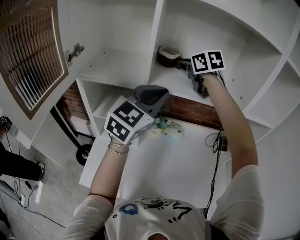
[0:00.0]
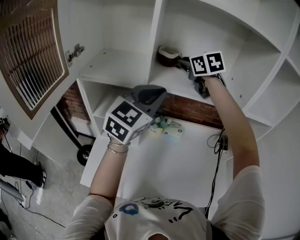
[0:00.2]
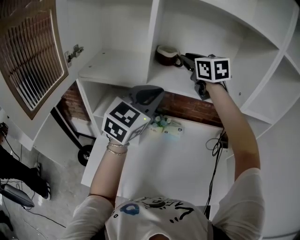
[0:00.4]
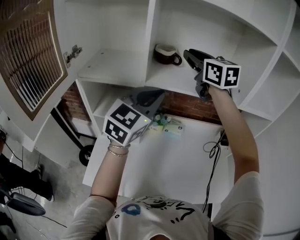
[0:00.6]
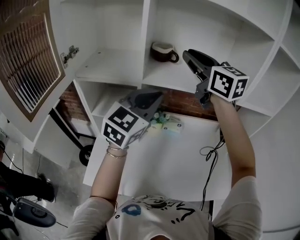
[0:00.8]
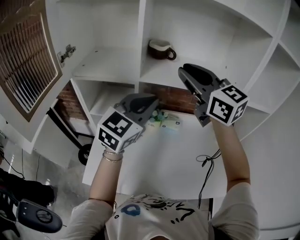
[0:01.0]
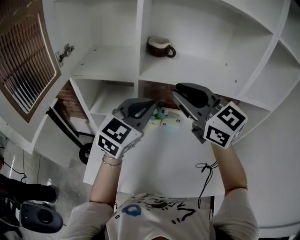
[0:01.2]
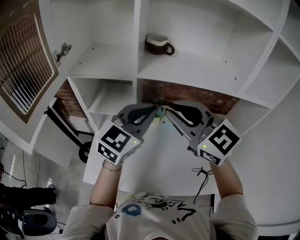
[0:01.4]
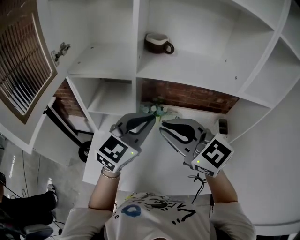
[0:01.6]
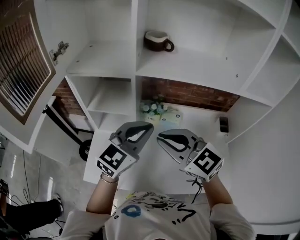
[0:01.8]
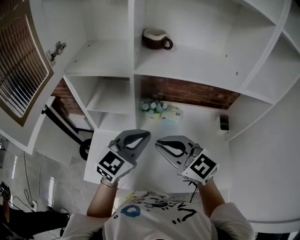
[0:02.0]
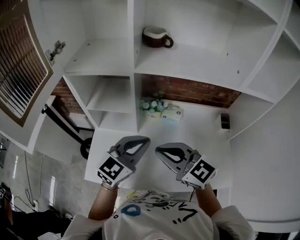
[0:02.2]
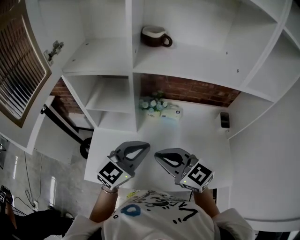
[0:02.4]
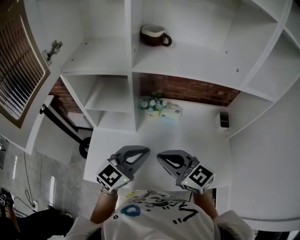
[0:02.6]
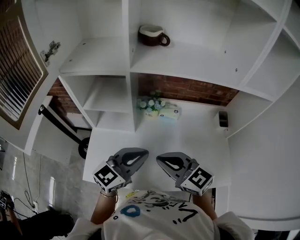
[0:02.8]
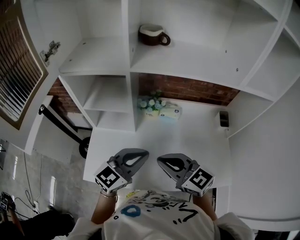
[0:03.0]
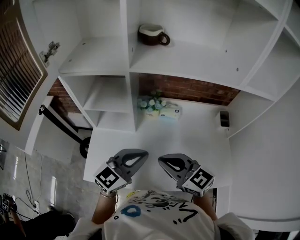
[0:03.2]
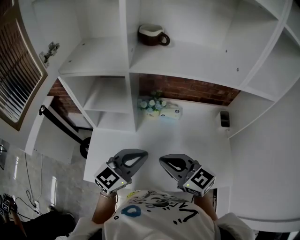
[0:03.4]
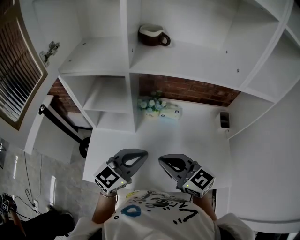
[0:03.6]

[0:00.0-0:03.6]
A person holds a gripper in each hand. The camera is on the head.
0:00.0 to 0:01.8: The left gripper is displaced downward and backward by some 15 cm. The right gripper travels backward and downward by roughly 35 cm, and turns by approximately 30 degrees.
0:01.8 to 0:03.6: The left gripper is displaced downward and backward by some 10 cm, while the right gripper goes about 10 cm downward.

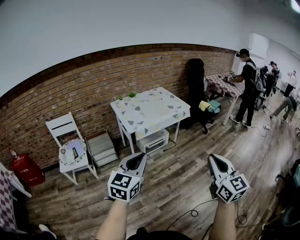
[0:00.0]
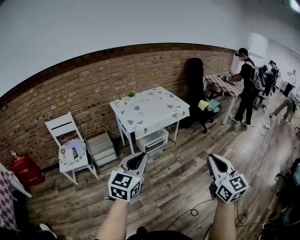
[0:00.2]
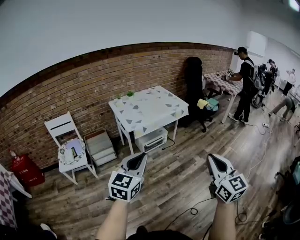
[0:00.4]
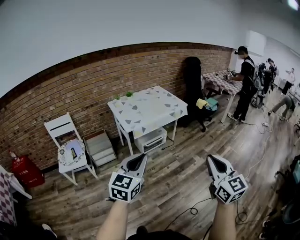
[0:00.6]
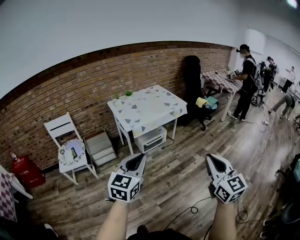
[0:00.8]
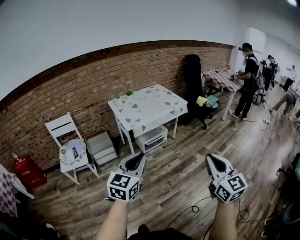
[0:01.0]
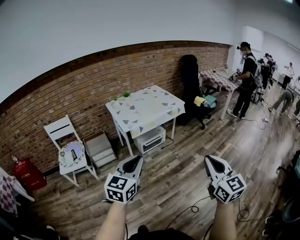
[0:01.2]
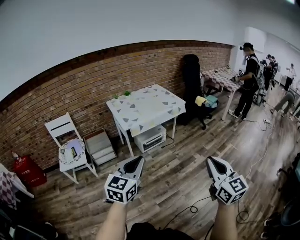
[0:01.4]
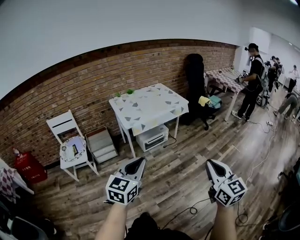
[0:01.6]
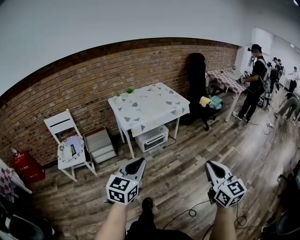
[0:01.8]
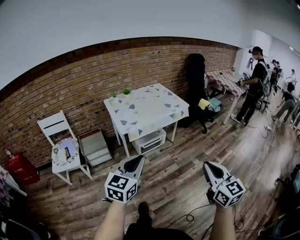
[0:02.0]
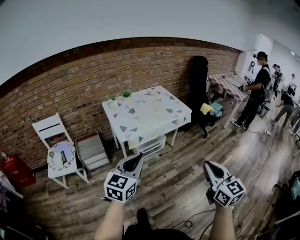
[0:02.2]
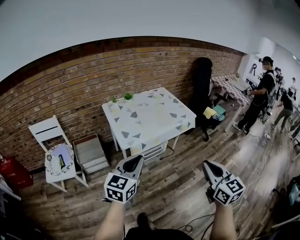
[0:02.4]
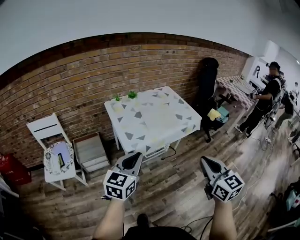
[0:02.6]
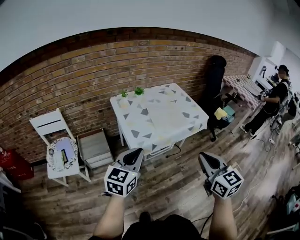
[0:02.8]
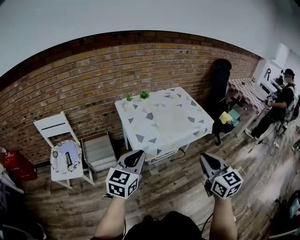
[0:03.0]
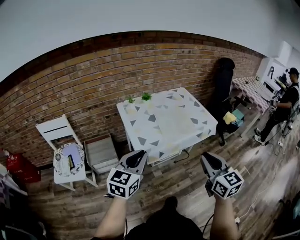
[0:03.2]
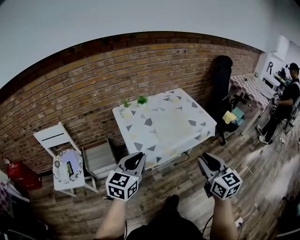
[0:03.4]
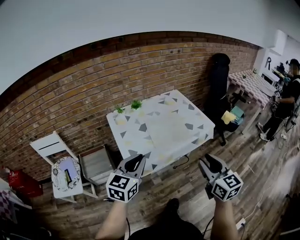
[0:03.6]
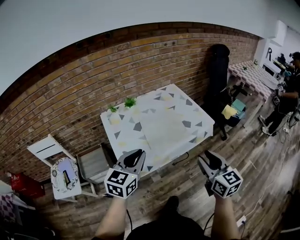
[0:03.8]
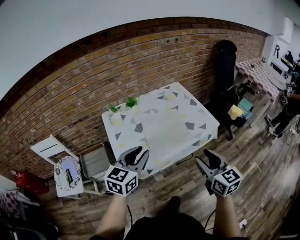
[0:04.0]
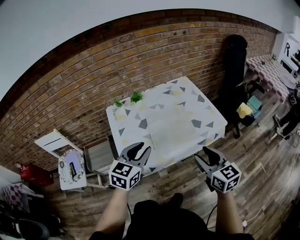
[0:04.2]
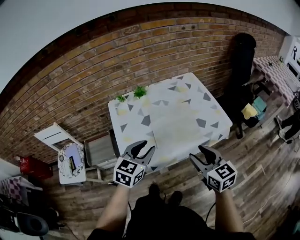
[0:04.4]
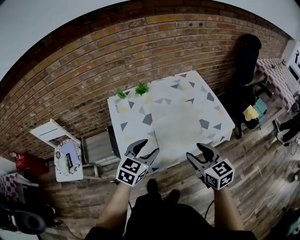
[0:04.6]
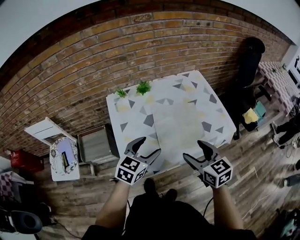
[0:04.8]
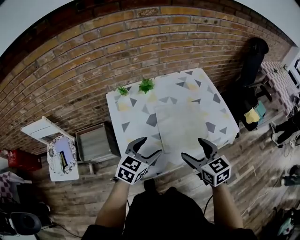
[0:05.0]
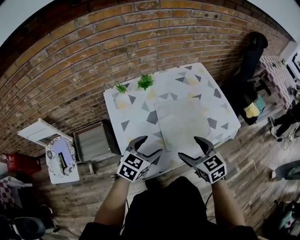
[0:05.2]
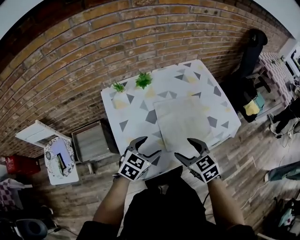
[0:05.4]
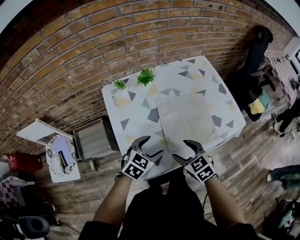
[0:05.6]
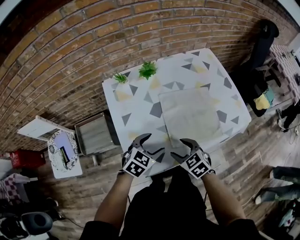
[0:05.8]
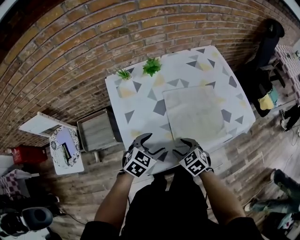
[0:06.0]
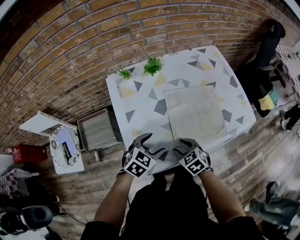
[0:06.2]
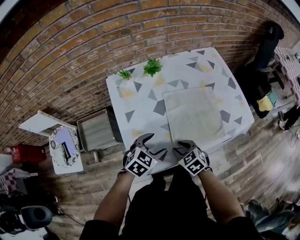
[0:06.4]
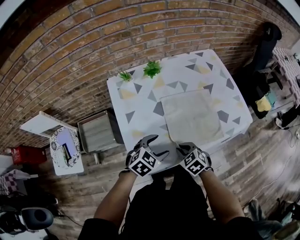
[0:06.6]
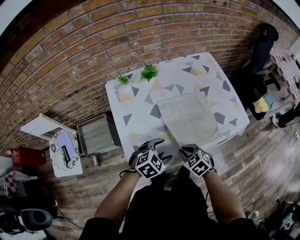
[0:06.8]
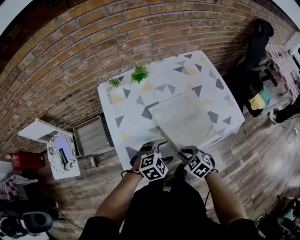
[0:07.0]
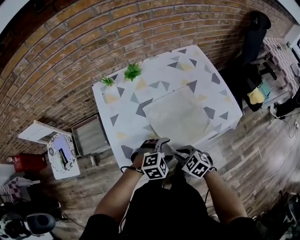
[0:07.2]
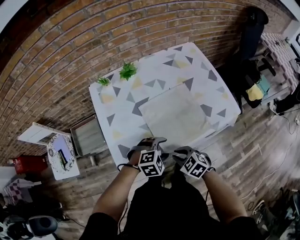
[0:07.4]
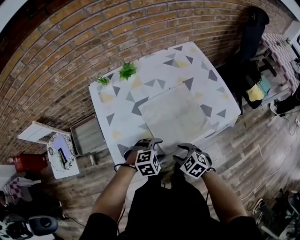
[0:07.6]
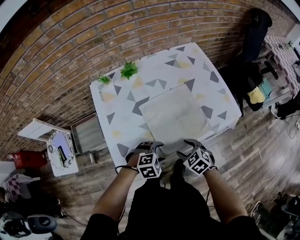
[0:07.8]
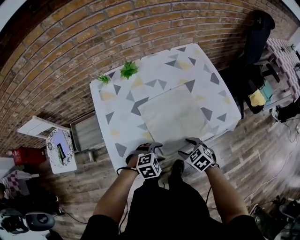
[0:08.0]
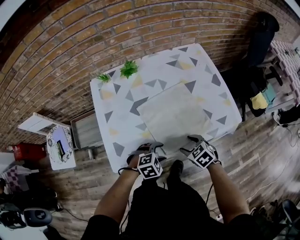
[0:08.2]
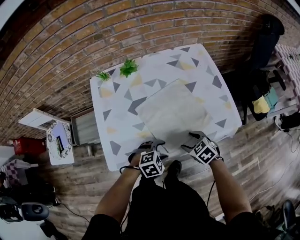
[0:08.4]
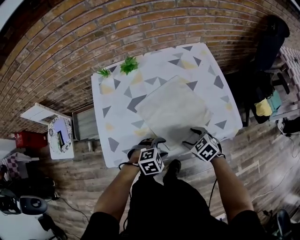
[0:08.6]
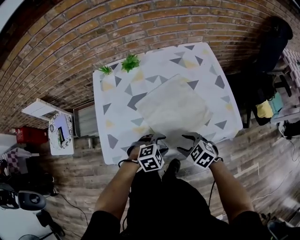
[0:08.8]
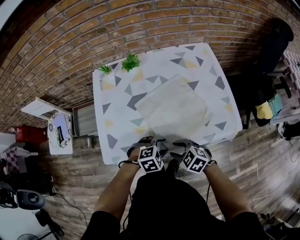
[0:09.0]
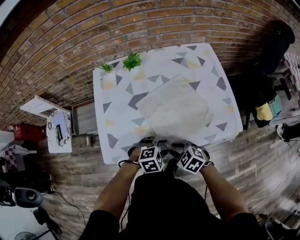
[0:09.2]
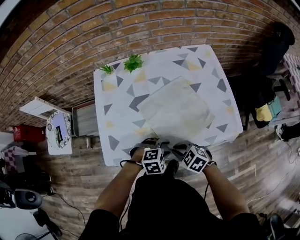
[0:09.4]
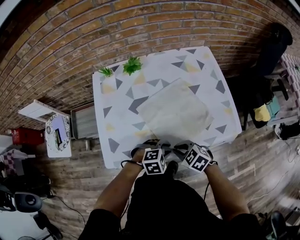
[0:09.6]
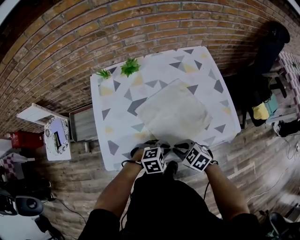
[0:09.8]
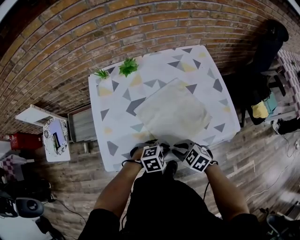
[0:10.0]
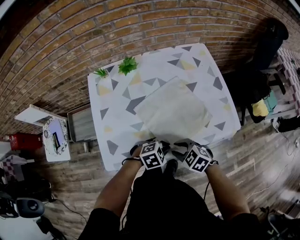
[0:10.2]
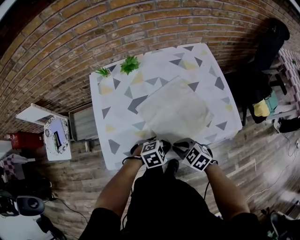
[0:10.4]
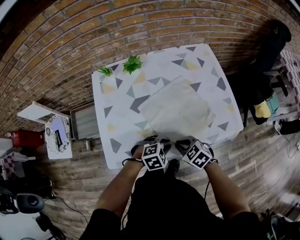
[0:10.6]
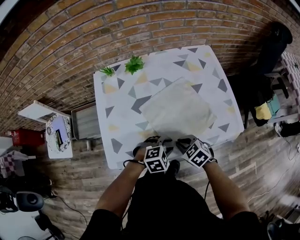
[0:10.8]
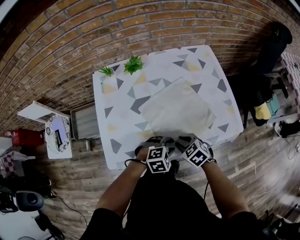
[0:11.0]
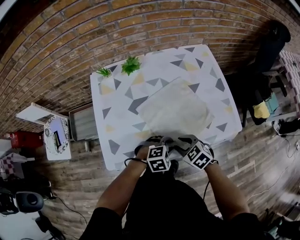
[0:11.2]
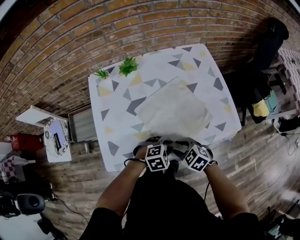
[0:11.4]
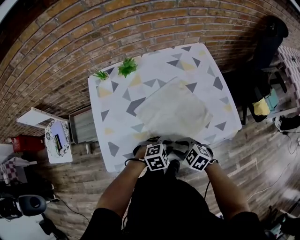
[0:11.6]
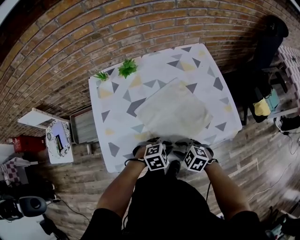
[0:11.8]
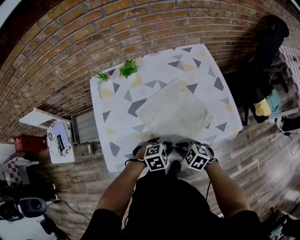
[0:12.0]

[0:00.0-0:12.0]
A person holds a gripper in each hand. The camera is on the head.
0:00.0 to 0:01.6: The left gripper ends up about 5 cm from where it was. Meanwhile the right gripper ends up about 5 cm from where it was.
0:01.6 to 0:03.0: Both grippers move forward and to the left, about 40 cm.
0:03.0 to 0:04.4: The left gripper goes about 30 cm forward and to the right, while the right gripper moves forward and downward, roughly 30 cm, and opens its fingers.
0:04.4 to 0:06.0: The right gripper heads downward and to the left, covering roughly 30 cm, and tips its fingers downward by approximately 30 degrees, while the left gripper is displaced downward by roughly 20 cm, turns by approximately 20 degrees, and opens.
0:06.0 to 0:07.6: The left gripper shifts by about 15 cm, and swivels about 40 degrees; the right gripper moves some 10 cm, and closes, then opens again.
0:07.6 to 0:09.0: The left gripper ends up roughly 10 cm from where it was; the right gripper rotates approximately 20 degrees.
0:09.0 to 0:10.4: The left gripper closes. Meanwhile the right gripper closes up.
0:10.4 to 0:12.0: There are only small adjustments of the grippers.

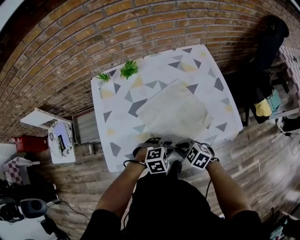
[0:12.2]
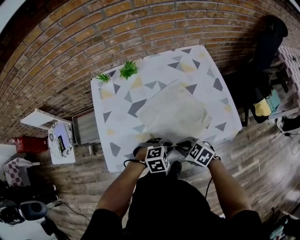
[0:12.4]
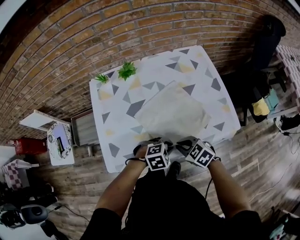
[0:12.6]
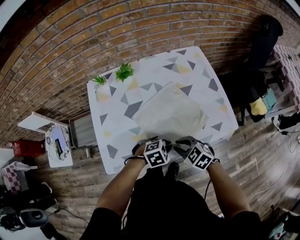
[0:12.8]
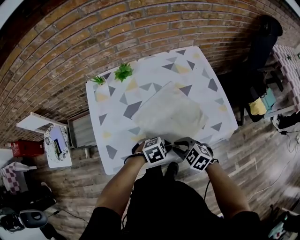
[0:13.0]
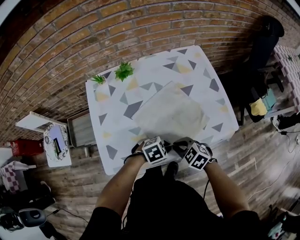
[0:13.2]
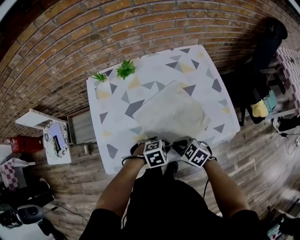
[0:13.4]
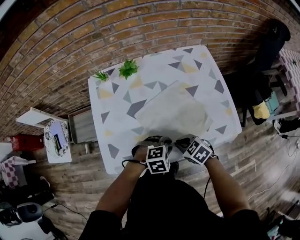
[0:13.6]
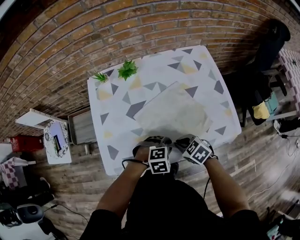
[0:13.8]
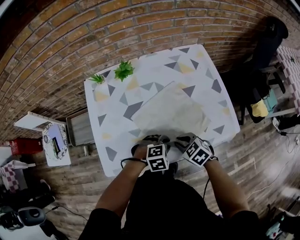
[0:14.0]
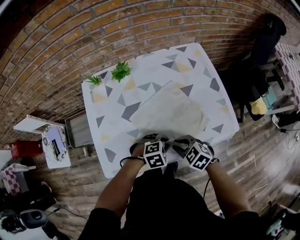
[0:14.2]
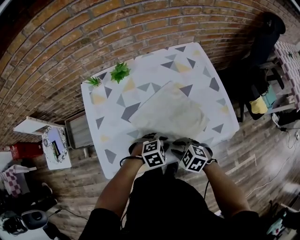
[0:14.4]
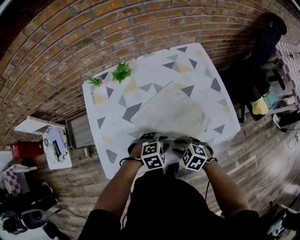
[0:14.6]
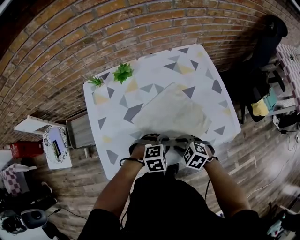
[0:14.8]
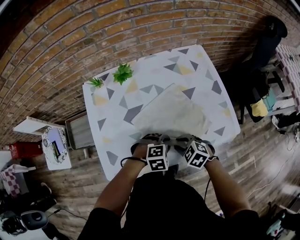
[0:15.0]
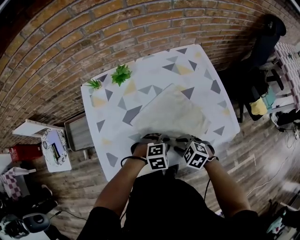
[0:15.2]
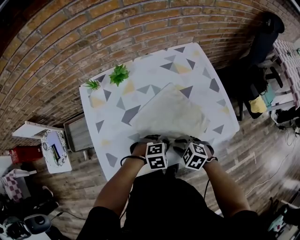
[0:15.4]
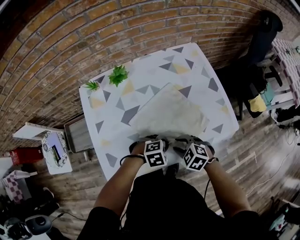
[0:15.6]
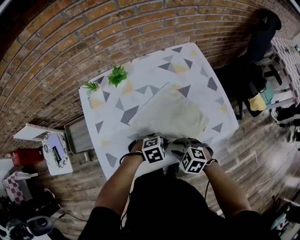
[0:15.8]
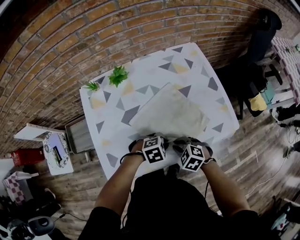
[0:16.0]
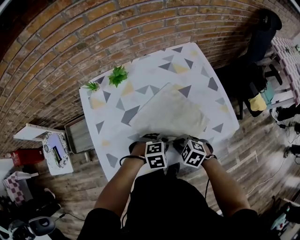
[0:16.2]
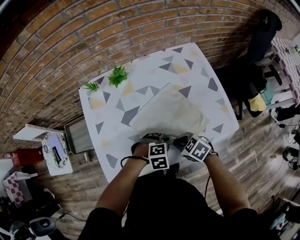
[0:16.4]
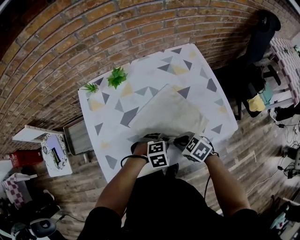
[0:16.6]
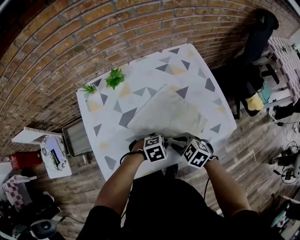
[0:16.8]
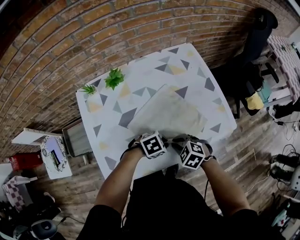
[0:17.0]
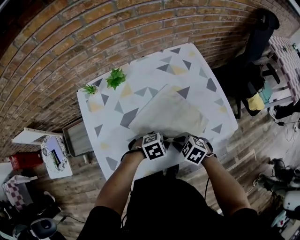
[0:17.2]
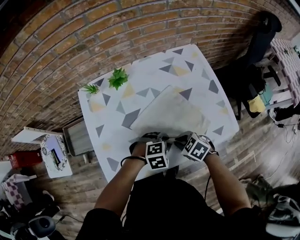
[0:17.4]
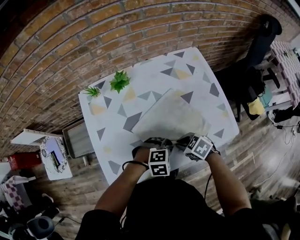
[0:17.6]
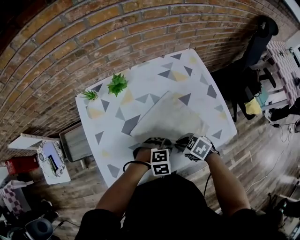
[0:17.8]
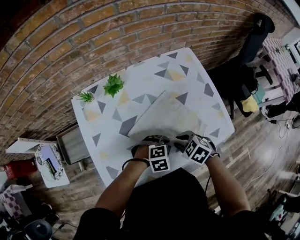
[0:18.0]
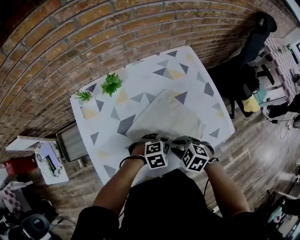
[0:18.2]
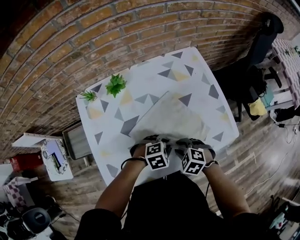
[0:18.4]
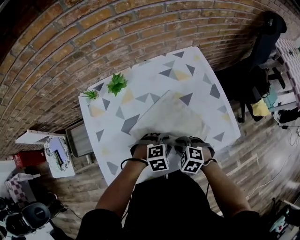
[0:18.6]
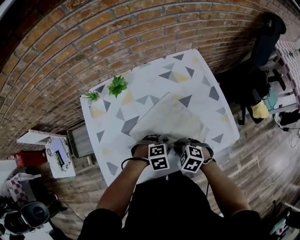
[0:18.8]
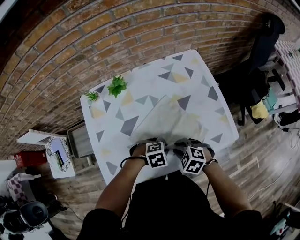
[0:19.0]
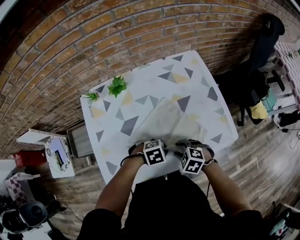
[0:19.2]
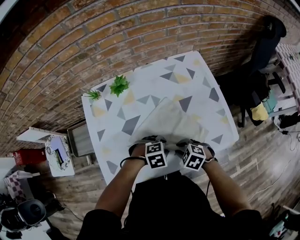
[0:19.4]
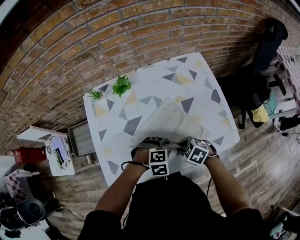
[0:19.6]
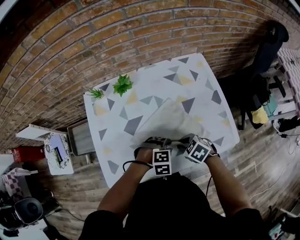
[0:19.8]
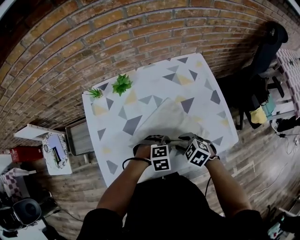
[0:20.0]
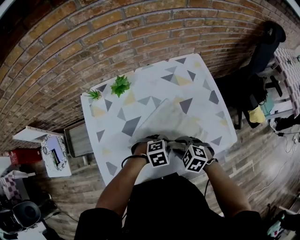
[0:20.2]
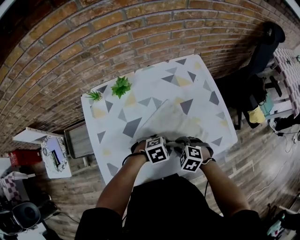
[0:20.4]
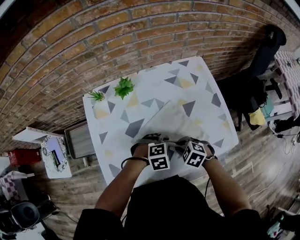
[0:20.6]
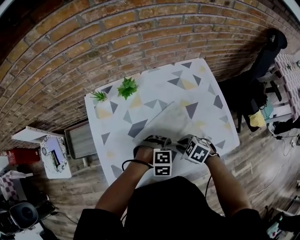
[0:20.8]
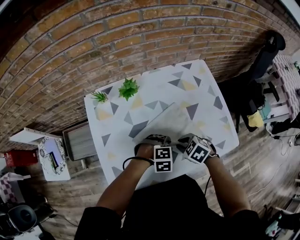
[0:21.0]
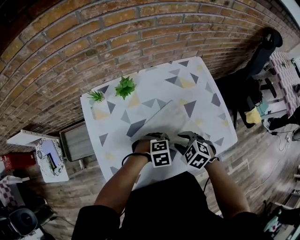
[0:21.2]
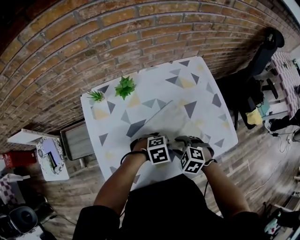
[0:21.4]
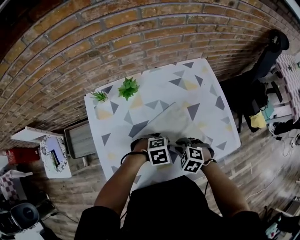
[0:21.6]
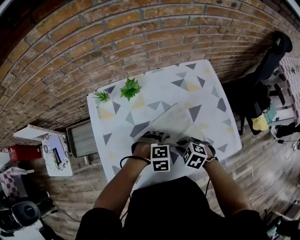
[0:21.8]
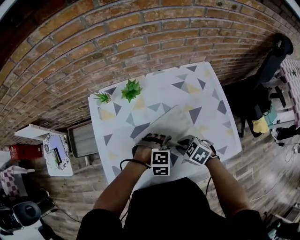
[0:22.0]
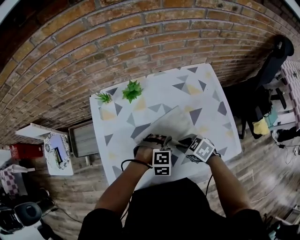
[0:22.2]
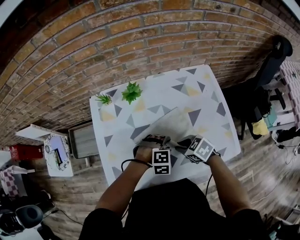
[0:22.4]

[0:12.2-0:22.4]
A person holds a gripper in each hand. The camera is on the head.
0:12.2 to 0:13.6: The grippers make only small movements.
0:13.6 to 0:15.2: The right gripper opens.
0:15.2 to 0:16.6: The right gripper closes up.
0:19.4 to 0:21.0: The right gripper shifts by some 5 cm.
0:21.0 to 0:22.4: The right gripper opens and closes again.
